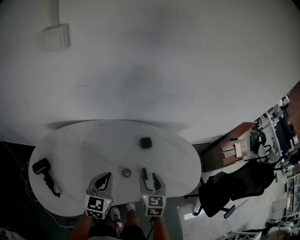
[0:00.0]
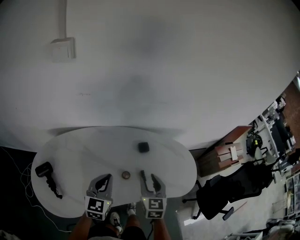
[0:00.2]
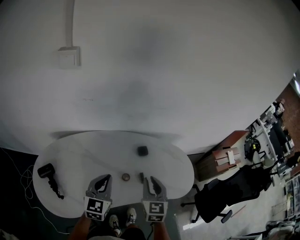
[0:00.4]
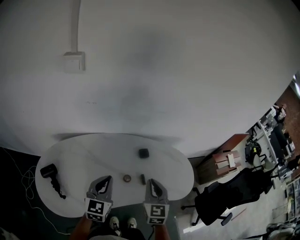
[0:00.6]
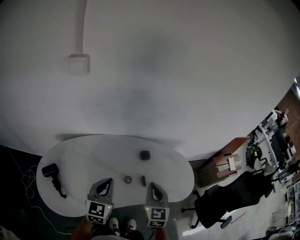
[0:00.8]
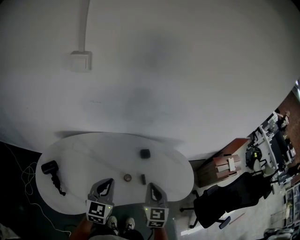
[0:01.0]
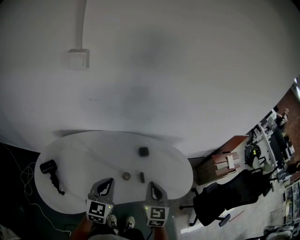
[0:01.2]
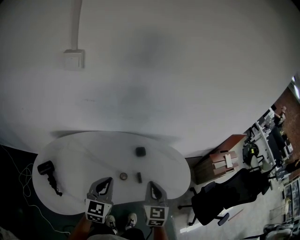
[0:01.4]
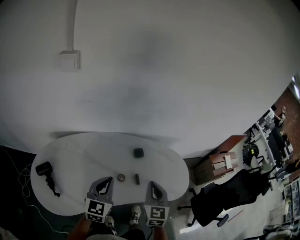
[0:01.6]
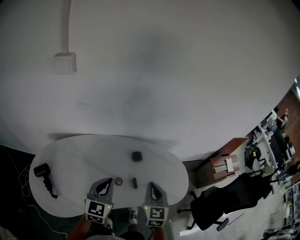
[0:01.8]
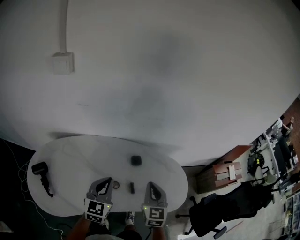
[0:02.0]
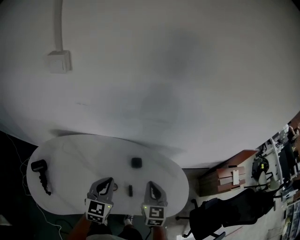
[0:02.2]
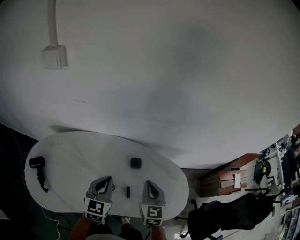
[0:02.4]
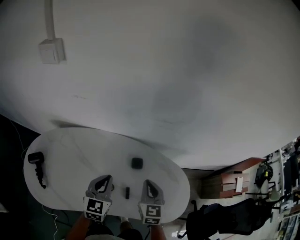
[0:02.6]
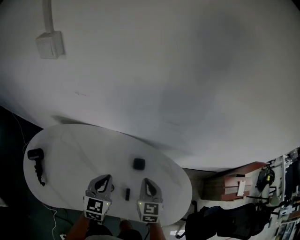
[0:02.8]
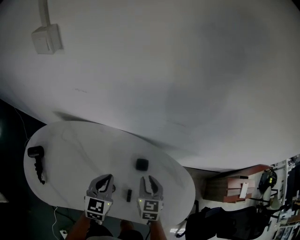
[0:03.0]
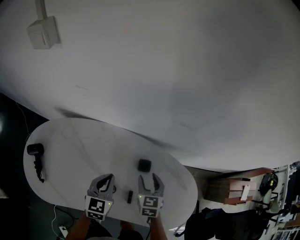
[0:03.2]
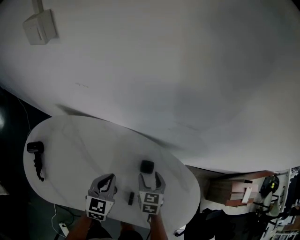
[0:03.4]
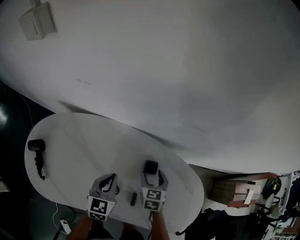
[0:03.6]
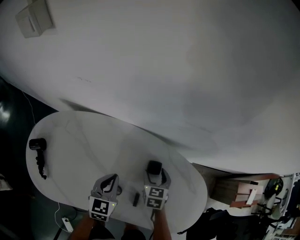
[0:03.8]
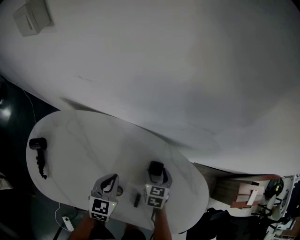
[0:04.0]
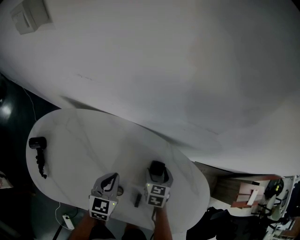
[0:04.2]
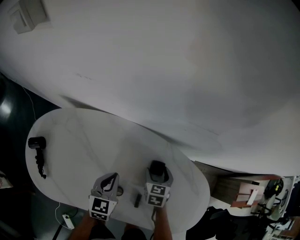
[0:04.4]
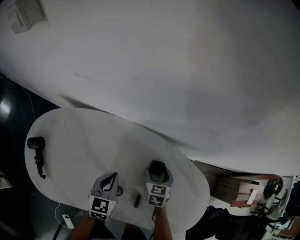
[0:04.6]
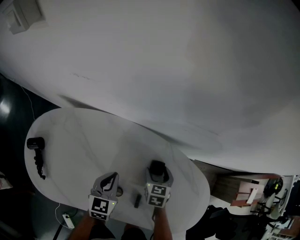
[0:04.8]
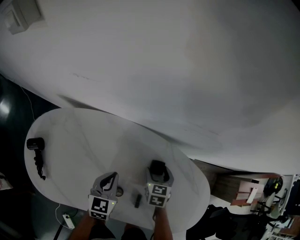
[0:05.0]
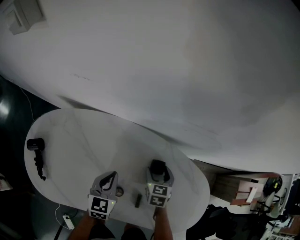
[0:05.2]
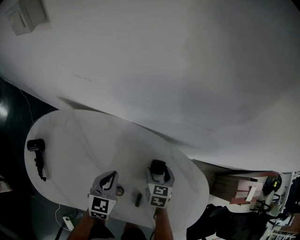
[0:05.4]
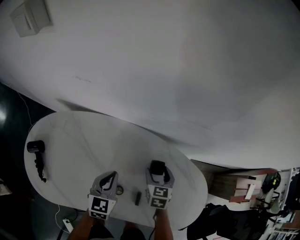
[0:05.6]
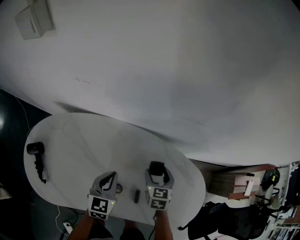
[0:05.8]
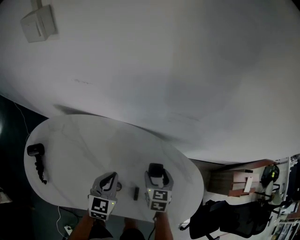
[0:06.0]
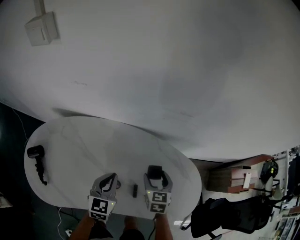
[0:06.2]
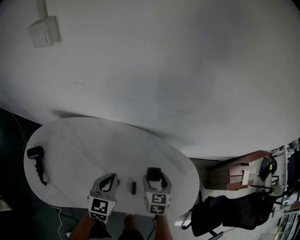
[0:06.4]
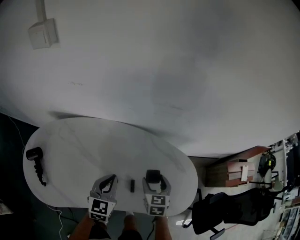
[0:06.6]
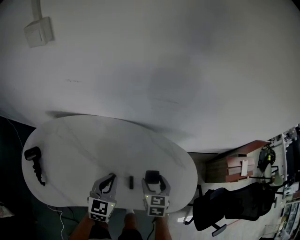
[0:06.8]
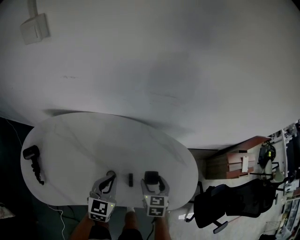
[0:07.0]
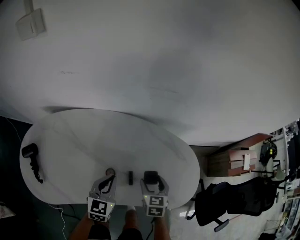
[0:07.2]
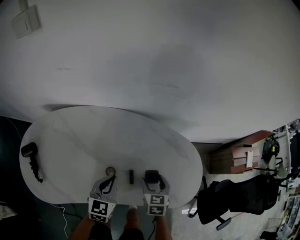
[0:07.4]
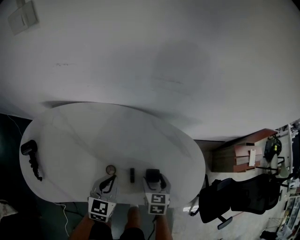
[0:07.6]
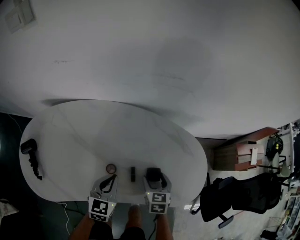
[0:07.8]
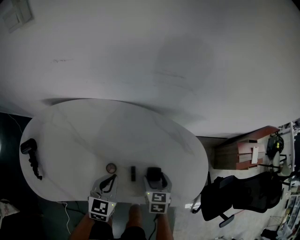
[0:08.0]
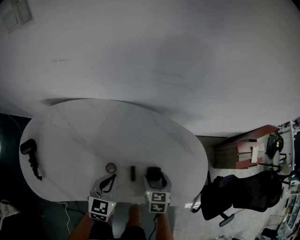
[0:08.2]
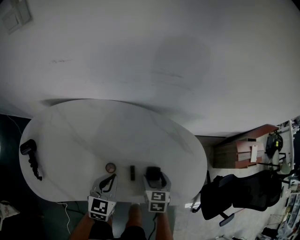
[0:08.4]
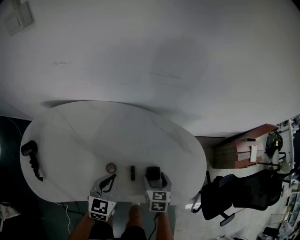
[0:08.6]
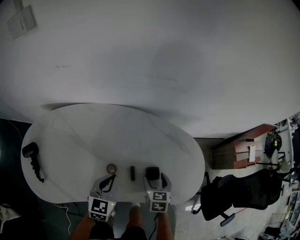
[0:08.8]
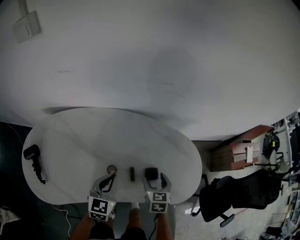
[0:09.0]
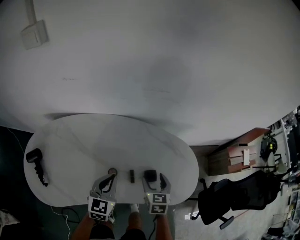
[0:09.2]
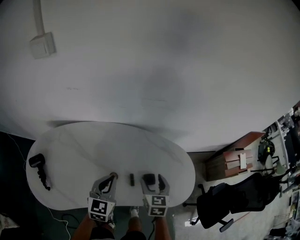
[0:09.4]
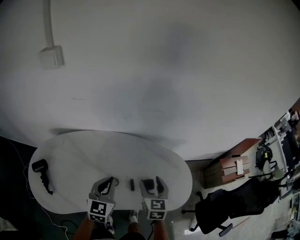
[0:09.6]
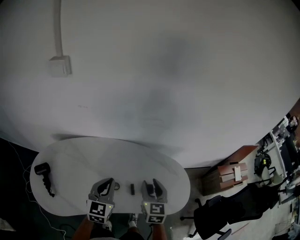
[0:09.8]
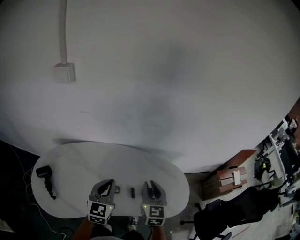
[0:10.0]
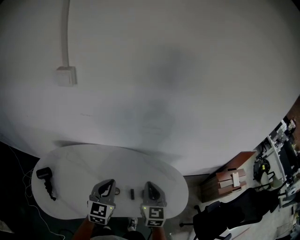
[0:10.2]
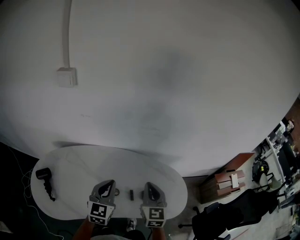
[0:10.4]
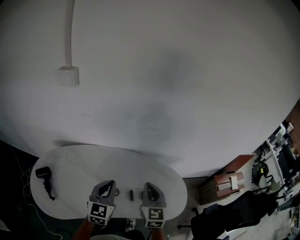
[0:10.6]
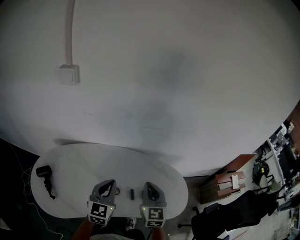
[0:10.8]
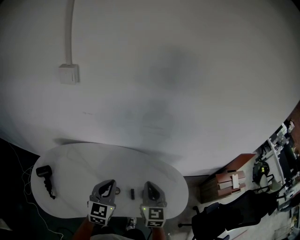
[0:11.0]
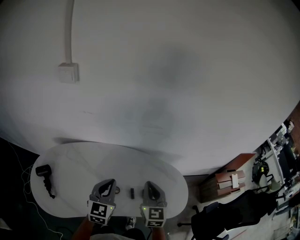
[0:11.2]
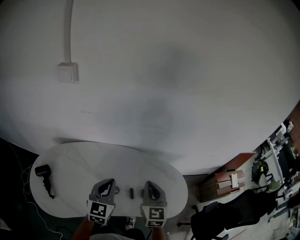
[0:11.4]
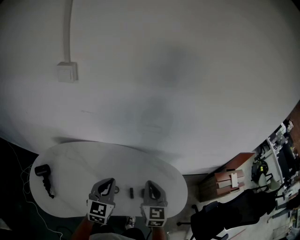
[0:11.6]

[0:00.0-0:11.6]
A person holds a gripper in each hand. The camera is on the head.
0:00.0 to 0:01.4: The right gripper travels upward and backward by approximately 15 cm, and closes, while the left gripper goes approximately 10 cm upward.
0:01.4 to 0:02.8: The right gripper is displaced forward and downward by approximately 20 cm, and turns by approximately 20 degrees; the left gripper heads forward, downward and to the right, covering about 20 cm.
0:02.8 to 0:04.4: The right gripper moves downward and forward, some 20 cm, turns by roughly 20 degrees, and opens up; the left gripper goes roughly 10 cm downward.
0:04.4 to 0:05.8: The right gripper heads upward, covering roughly 5 cm.
0:05.8 to 0:07.2: The left gripper goes some 10 cm backward and to the right. Meanwhile the right gripper is displaced backward by some 15 cm.
0:07.2 to 0:08.8: The grippers stay close to where they were, moving slightly.
0:08.8 to 0:10.2: Both grippers travel together upward, roughly 25 cm. The left gripper swivels roughly 20 degrees; the right gripper points its fingers roughly 30 degrees further upward, and closes its fingers.
0:10.2 to 0:11.6: Both grippers stay about where they are.

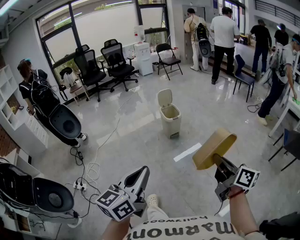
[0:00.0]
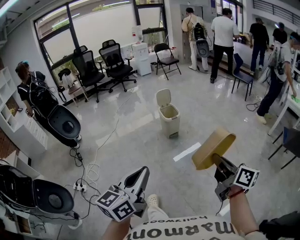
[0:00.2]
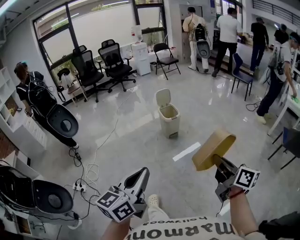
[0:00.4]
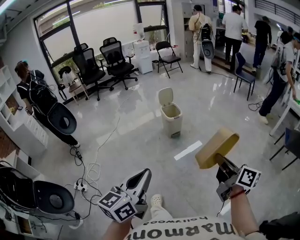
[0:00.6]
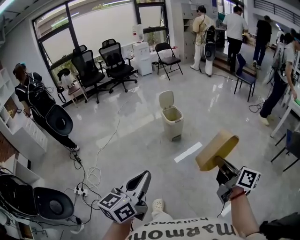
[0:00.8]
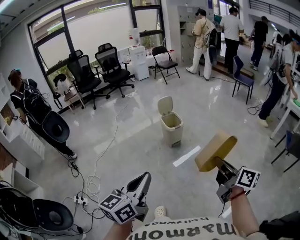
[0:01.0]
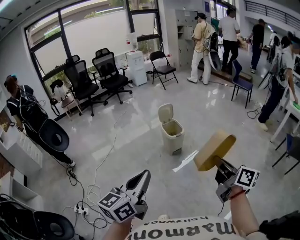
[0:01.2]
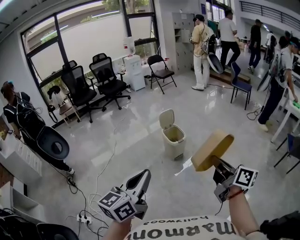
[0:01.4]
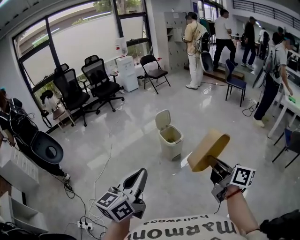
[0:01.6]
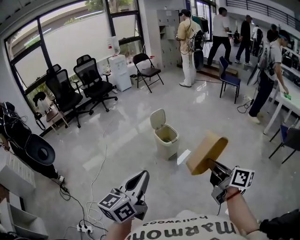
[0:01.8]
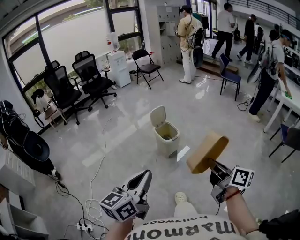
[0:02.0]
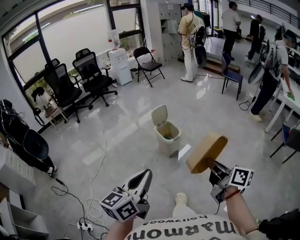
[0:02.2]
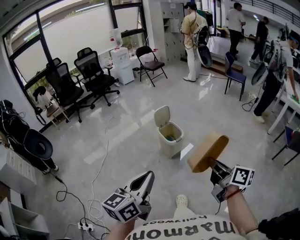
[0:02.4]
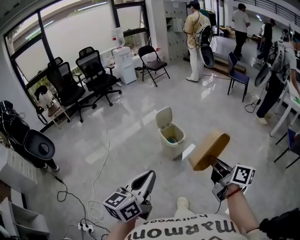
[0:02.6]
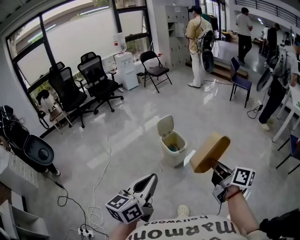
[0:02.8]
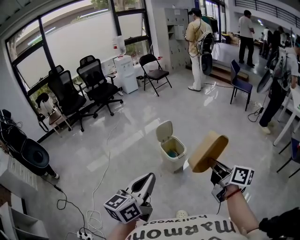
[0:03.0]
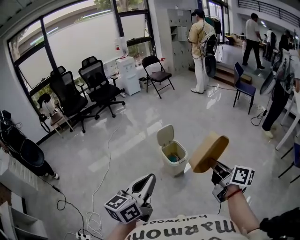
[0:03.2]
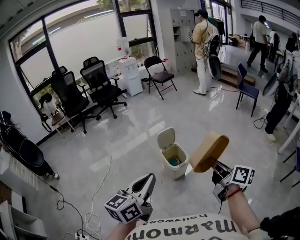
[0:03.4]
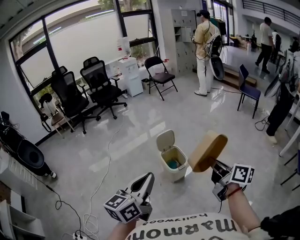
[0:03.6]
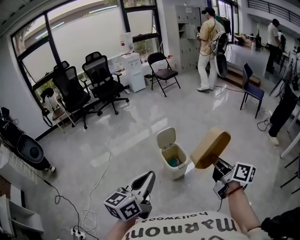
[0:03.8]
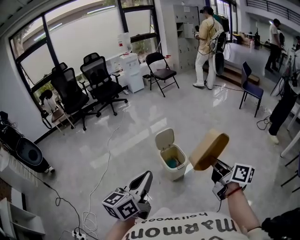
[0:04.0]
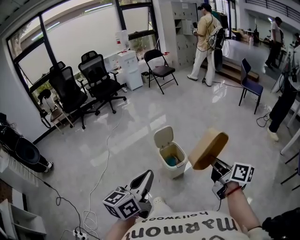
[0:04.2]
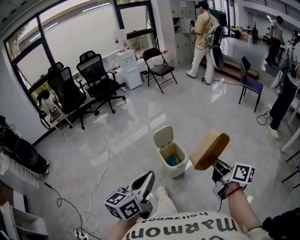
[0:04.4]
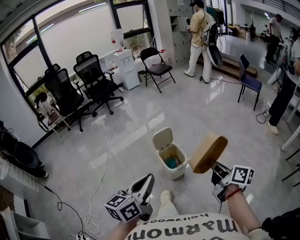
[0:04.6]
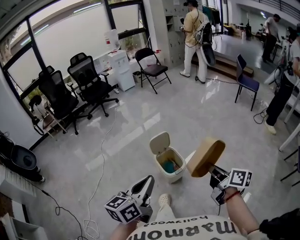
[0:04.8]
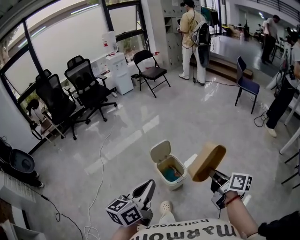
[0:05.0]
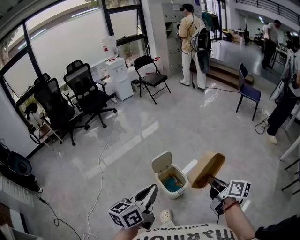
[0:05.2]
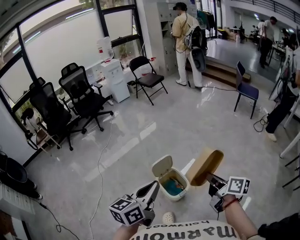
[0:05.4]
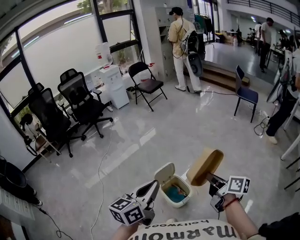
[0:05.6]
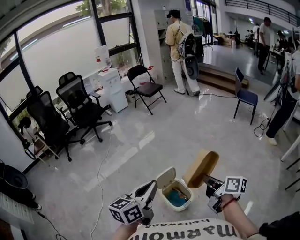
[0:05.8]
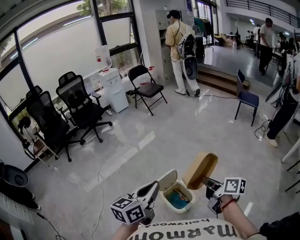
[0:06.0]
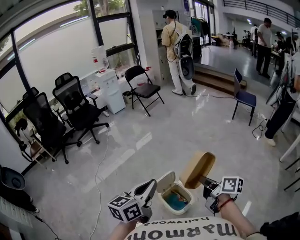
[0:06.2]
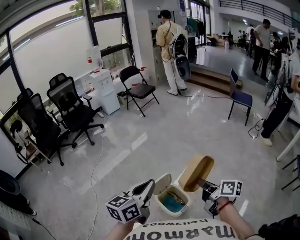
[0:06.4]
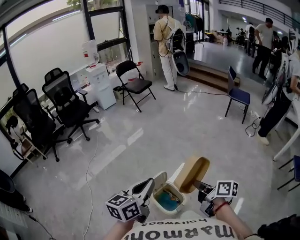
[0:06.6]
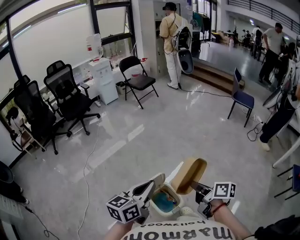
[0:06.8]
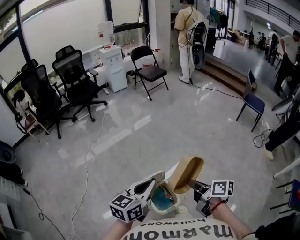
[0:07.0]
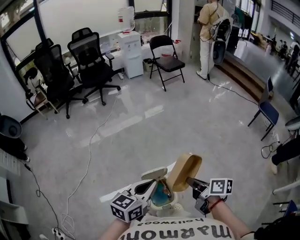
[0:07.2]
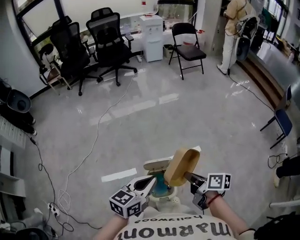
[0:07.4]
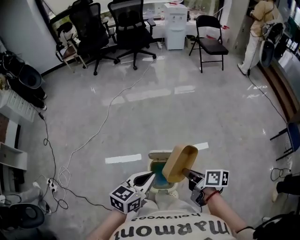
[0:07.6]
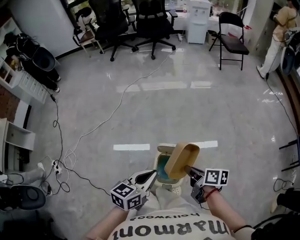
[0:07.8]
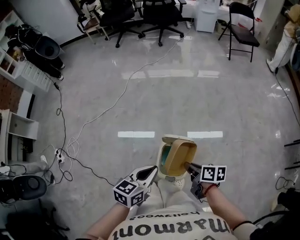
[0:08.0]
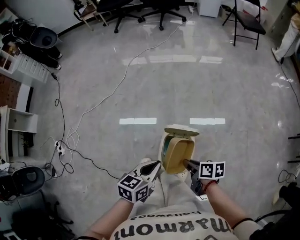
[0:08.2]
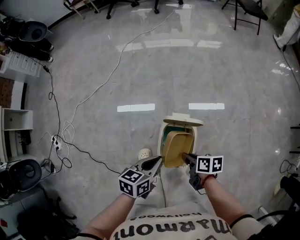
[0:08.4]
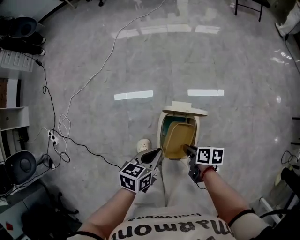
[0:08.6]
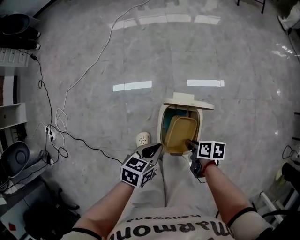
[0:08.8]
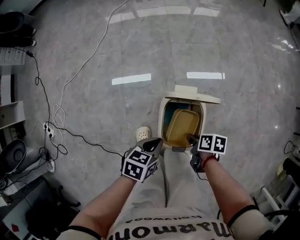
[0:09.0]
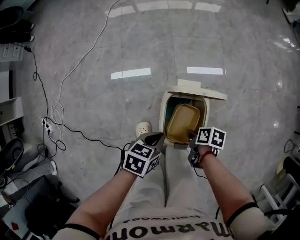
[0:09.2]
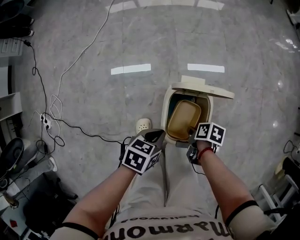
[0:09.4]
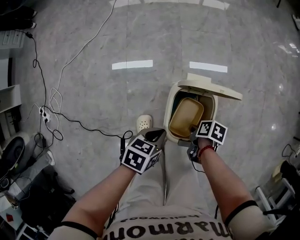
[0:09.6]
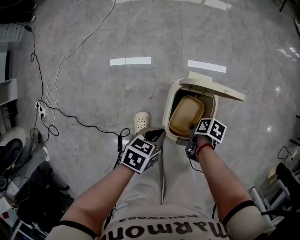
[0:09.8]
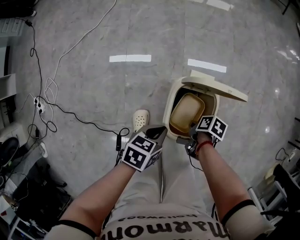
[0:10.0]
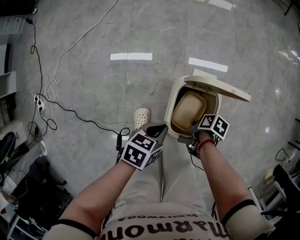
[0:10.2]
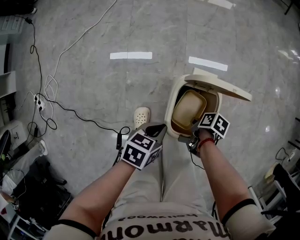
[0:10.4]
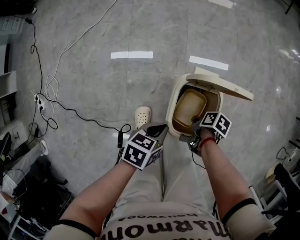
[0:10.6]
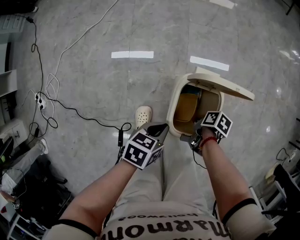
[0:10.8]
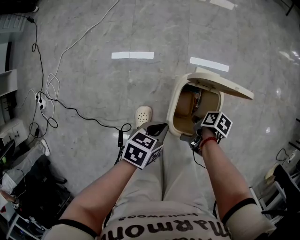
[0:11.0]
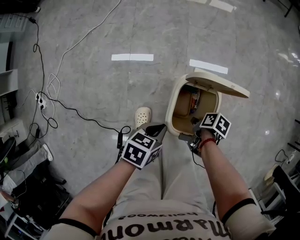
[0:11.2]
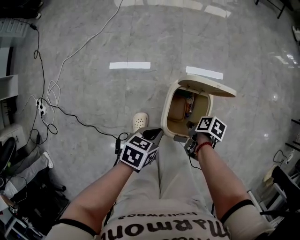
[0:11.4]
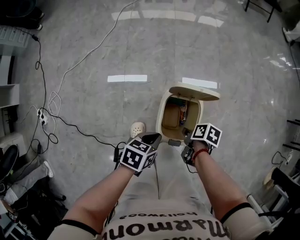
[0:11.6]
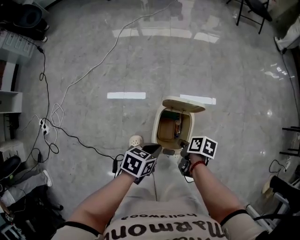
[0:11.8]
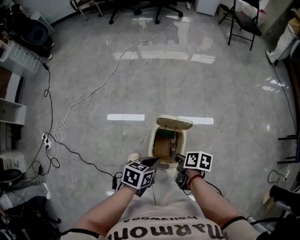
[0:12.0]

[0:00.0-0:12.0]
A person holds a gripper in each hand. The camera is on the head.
0:00.0 to 0:01.6: The grippers both shift forward and to the left by approximately 25 cm.
0:01.6 to 0:03.0: Both grippers travel together forward, approximately 20 cm.
0:03.0 to 0:04.4: The right gripper moves forward and to the right, some 15 cm. Meanwhile the left gripper shifts roughly 15 cm forward.
0:04.4 to 0:06.0: The two grippers go some 30 cm forward.
0:06.0 to 0:07.6: The grippers both shift downward by roughly 15 cm. The left gripper rotates roughly 30 degrees. Meanwhile the right gripper rotates roughly 50 degrees.
0:07.6 to 0:09.0: Both grippers travel together downward, some 35 cm. The right gripper turns by approximately 30 degrees. The left gripper rotates some 30 degrees.
0:09.0 to 0:10.4: The right gripper heads downward, covering about 5 cm, and changes its angle by approximately 20 degrees. Meanwhile the left gripper changes place by about 5 cm.
0:10.4 to 0:12.0: The two grippers go some 20 cm upward. The right gripper swivels some 30 degrees.
